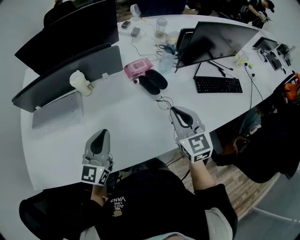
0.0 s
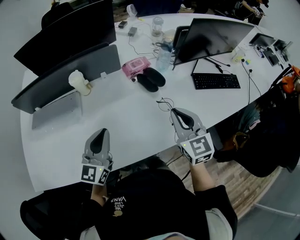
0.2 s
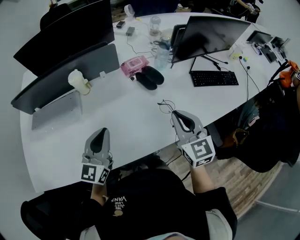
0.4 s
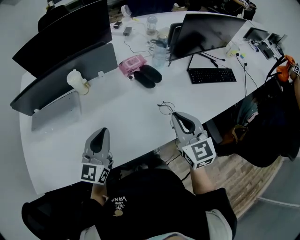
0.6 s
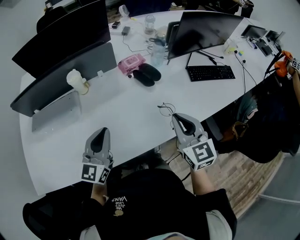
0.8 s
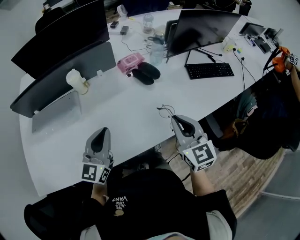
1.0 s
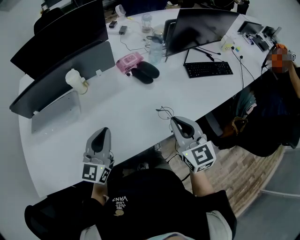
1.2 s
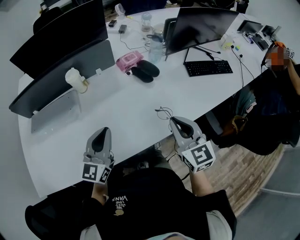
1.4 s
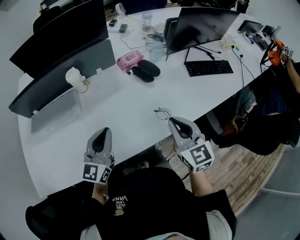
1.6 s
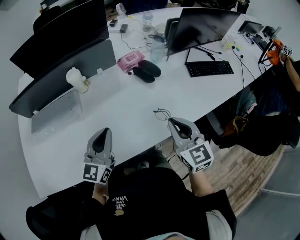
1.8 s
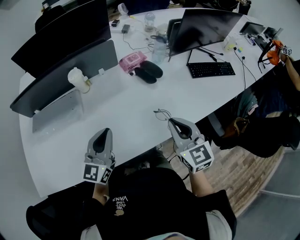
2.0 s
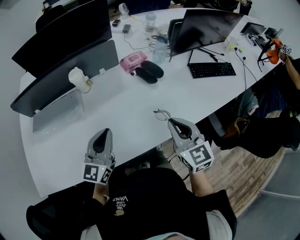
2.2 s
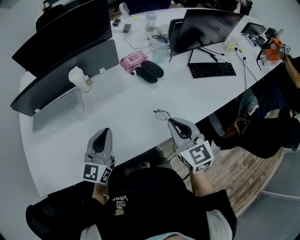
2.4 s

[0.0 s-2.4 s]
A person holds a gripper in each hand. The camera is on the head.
0.0 to 1.2 s: The right gripper shifts some 10 cm backward.
1.2 to 2.4 s: The grippers make only small movements.

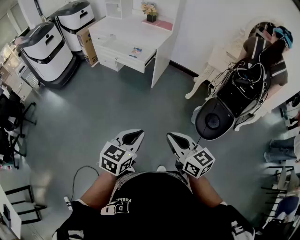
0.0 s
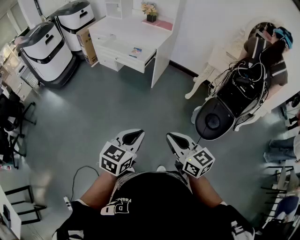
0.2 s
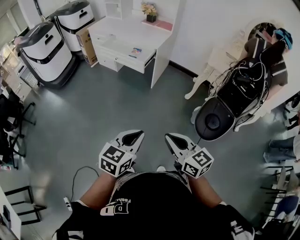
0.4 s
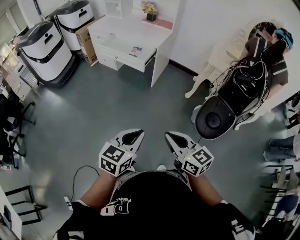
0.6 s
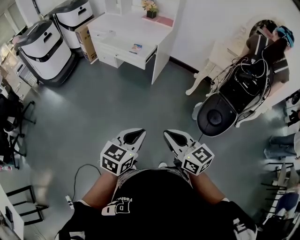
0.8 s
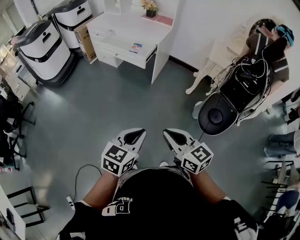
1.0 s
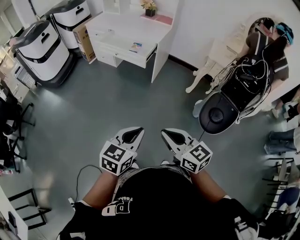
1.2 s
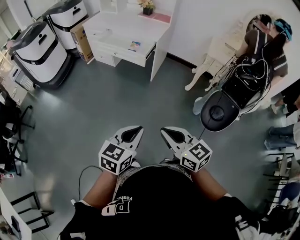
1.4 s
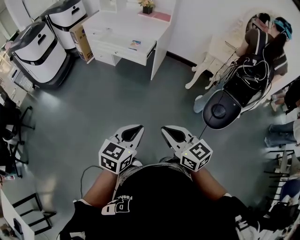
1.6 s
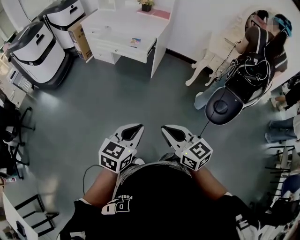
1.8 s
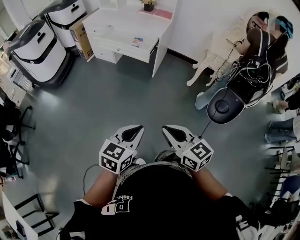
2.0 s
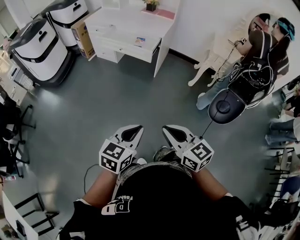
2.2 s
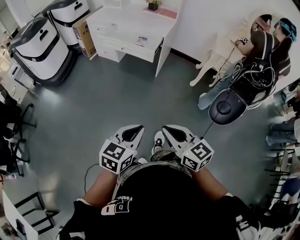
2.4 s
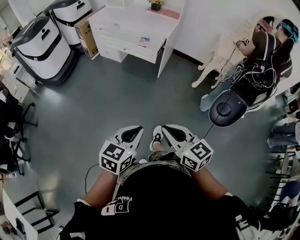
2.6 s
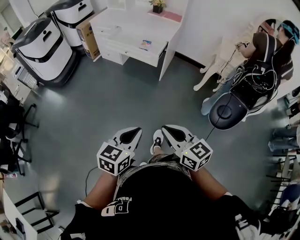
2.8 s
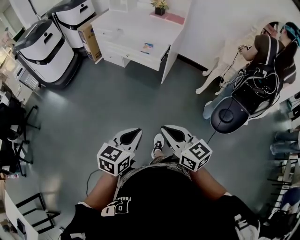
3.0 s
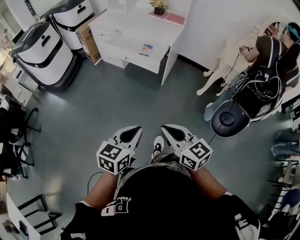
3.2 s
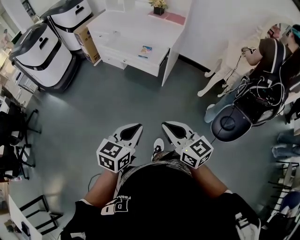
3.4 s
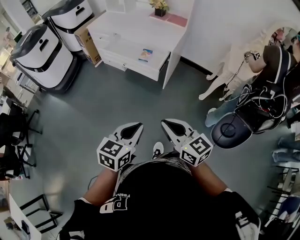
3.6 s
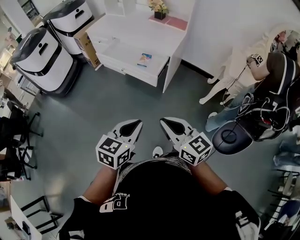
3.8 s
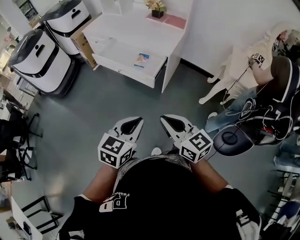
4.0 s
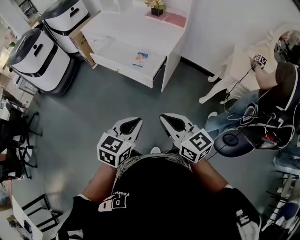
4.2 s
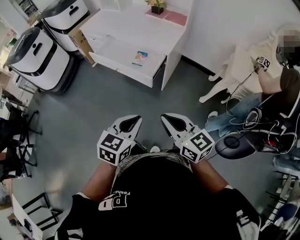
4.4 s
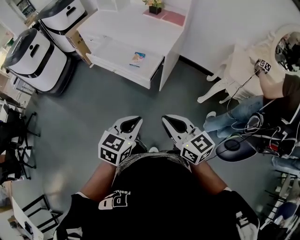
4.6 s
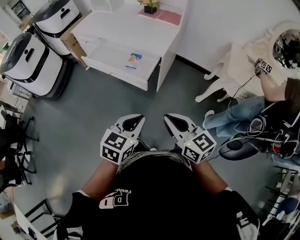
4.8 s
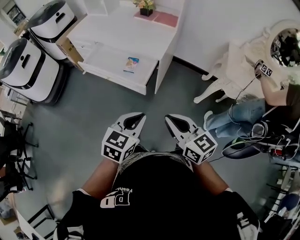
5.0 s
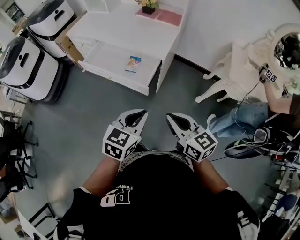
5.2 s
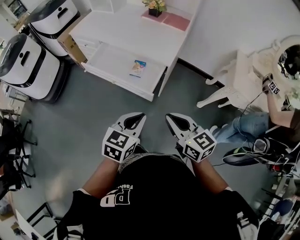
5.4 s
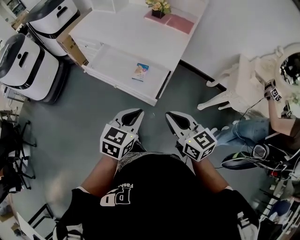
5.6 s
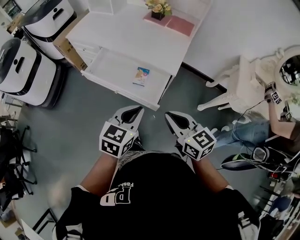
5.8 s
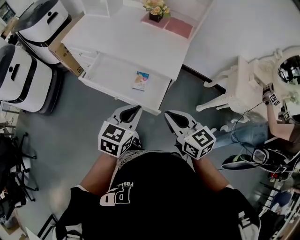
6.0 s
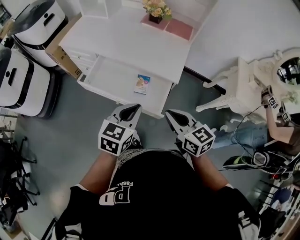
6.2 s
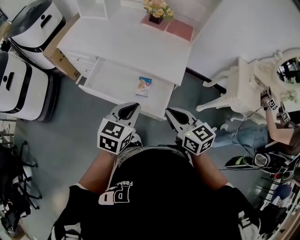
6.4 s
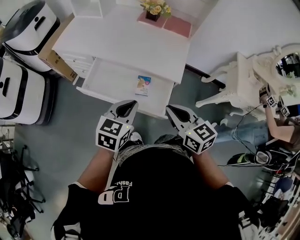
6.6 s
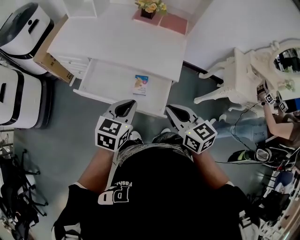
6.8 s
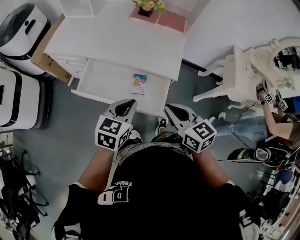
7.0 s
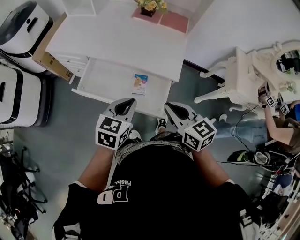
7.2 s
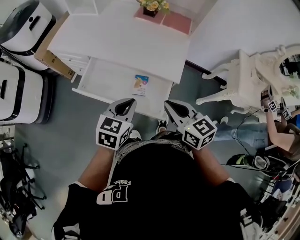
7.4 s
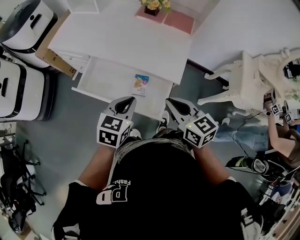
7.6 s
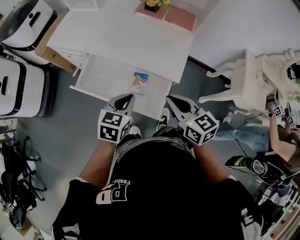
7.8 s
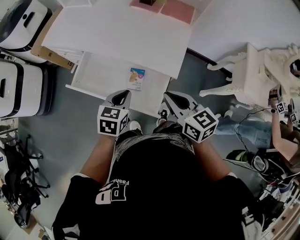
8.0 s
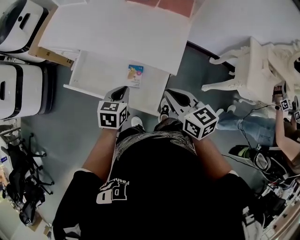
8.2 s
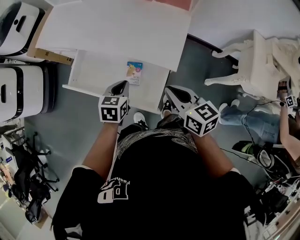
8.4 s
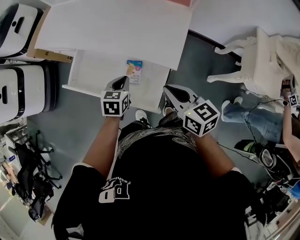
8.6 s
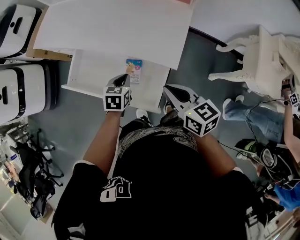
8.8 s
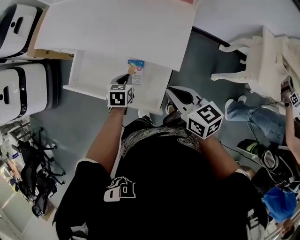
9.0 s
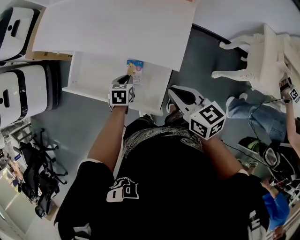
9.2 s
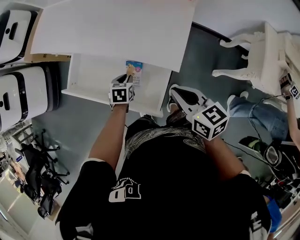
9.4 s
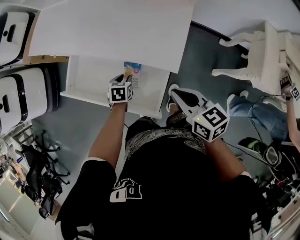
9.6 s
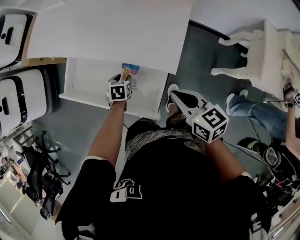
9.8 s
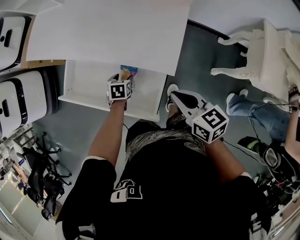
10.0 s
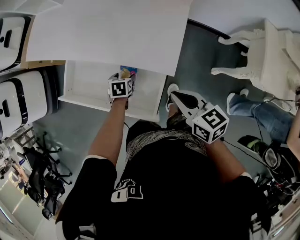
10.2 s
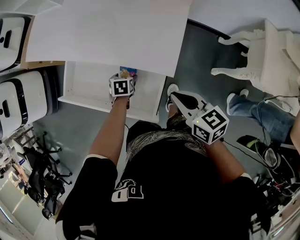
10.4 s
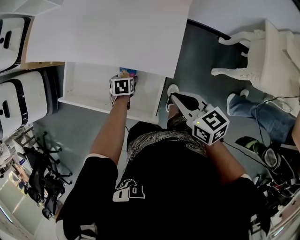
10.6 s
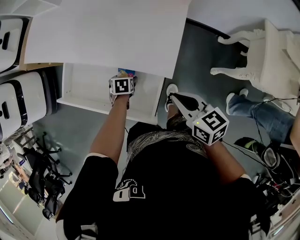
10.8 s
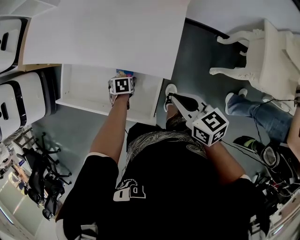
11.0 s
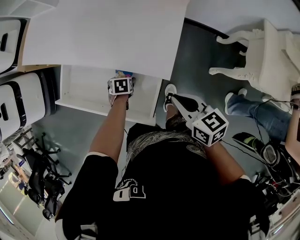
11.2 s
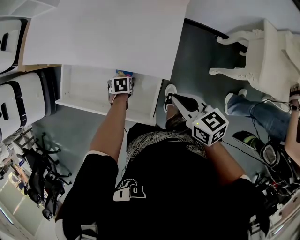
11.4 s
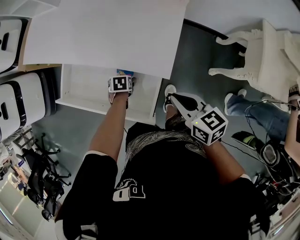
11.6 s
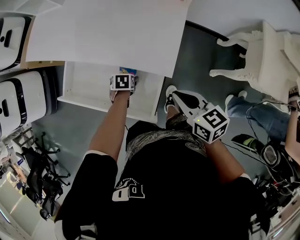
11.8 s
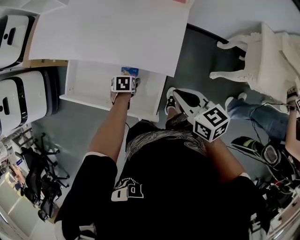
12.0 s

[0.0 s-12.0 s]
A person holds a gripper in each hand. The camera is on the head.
0.0 to 1.6 s: Both grippers move to the left, approximately 10 cm.
1.6 to 3.0 s: The right gripper is displaced forward and to the left by approximately 10 cm, while the left gripper goes some 10 cm to the left and forward.
3.0 to 4.4 s: The grippers both shift forward and to the right by some 30 cm.
4.4 to 6.0 s: Both grippers move forward, some 30 cm.
6.0 to 7.6 s: The grippers both shift forward by about 15 cm.
7.6 to 9.0 s: The left gripper is displaced downward and forward by approximately 25 cm, and changes its angle by roughly 30 degrees. The right gripper shifts roughly 10 cm downward and to the right.
9.0 to 10.4 s: The right gripper shifts by some 5 cm. The left gripper moves downward, about 10 cm, and opens its fingers.
10.4 to 12.0 s: The grippers stay close to where they were, moving slightly.

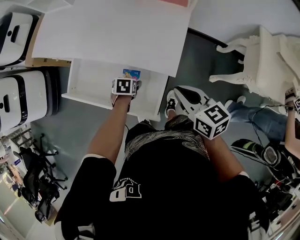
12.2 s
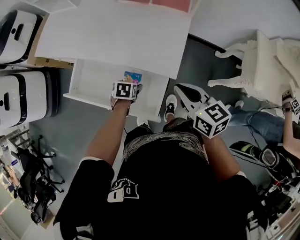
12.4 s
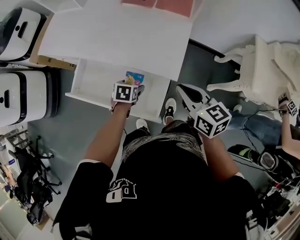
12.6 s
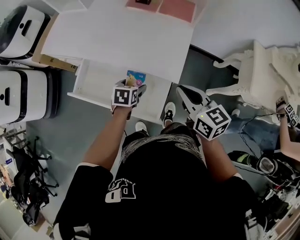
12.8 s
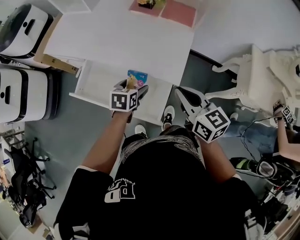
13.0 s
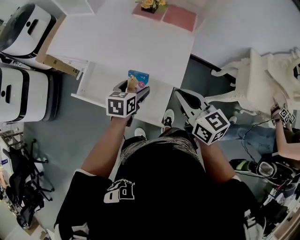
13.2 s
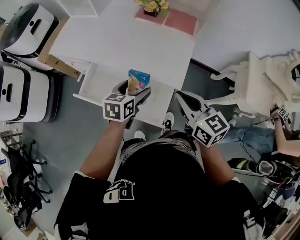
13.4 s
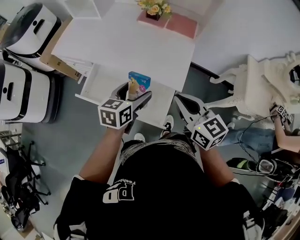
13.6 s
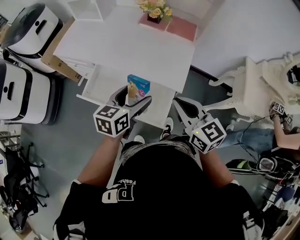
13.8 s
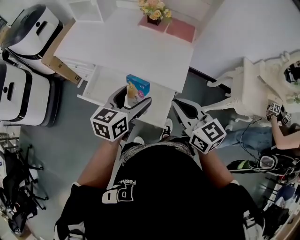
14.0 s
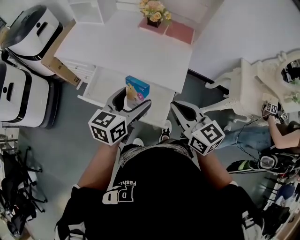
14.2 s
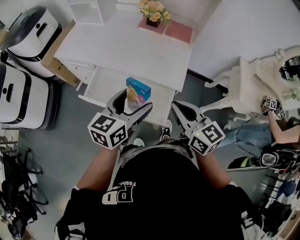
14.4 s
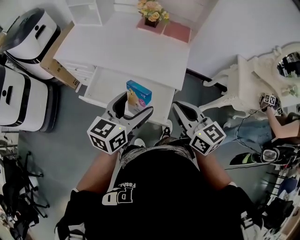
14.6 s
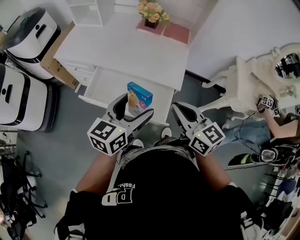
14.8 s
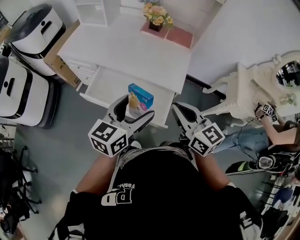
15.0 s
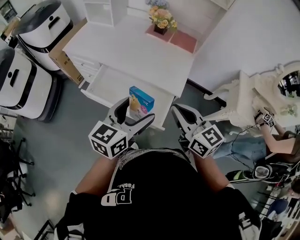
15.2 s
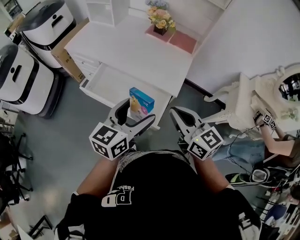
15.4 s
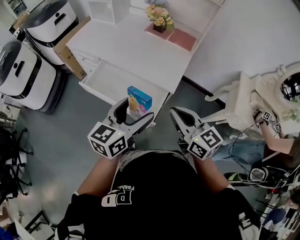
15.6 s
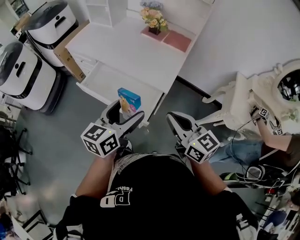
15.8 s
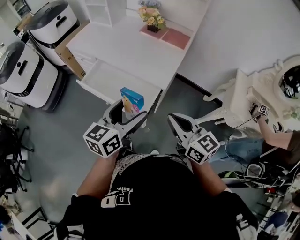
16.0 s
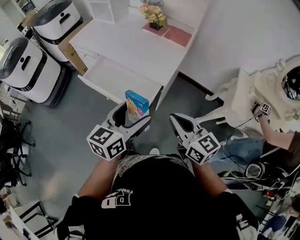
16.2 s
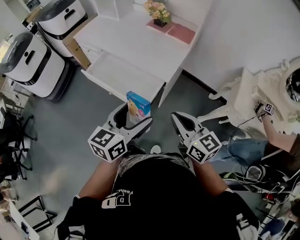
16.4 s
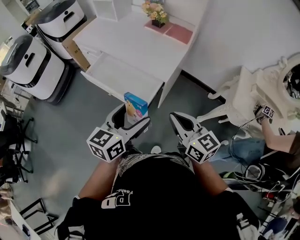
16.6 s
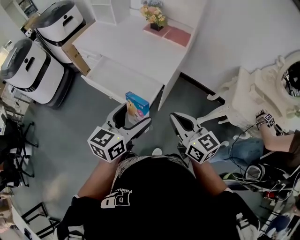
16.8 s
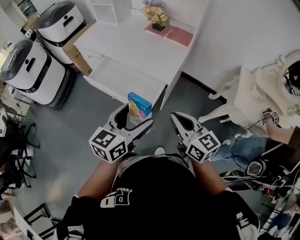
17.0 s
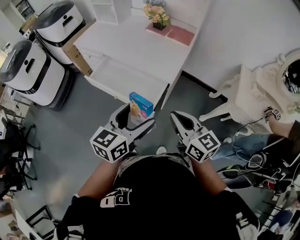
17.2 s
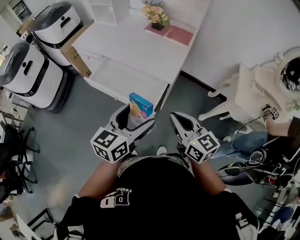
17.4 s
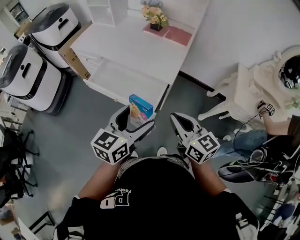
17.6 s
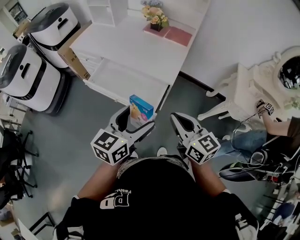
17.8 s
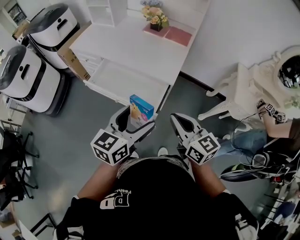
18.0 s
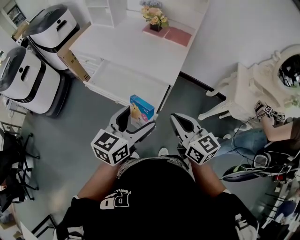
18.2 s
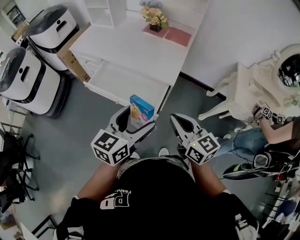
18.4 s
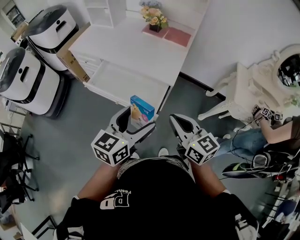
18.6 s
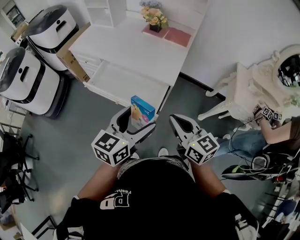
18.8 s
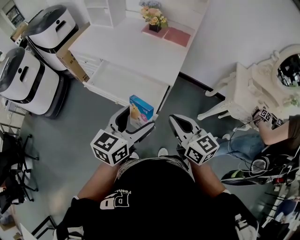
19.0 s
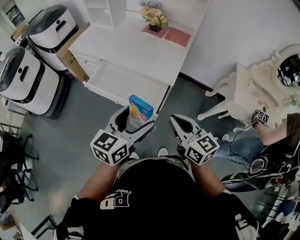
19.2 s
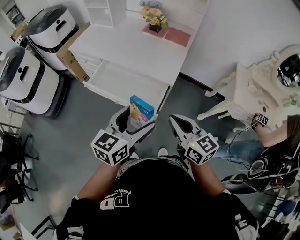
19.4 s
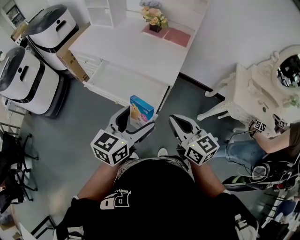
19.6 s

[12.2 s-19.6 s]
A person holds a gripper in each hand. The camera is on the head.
12.2 to 13.6 s: The right gripper goes some 15 cm upward and to the left, while the left gripper shifts about 30 cm upward, and angles its fingers upward, by some 50 degrees.
13.6 to 15.2 s: The left gripper heads backward and upward, covering some 20 cm, while the right gripper moves backward, about 10 cm.
15.2 to 16.6 s: The right gripper moves to the right and backward, about 20 cm, while the left gripper is displaced backward and to the right by roughly 20 cm.
16.6 to 18.2 s: Both grippers move to the left, about 5 cm.
18.2 to 19.6 s: The two grippers keep their place.

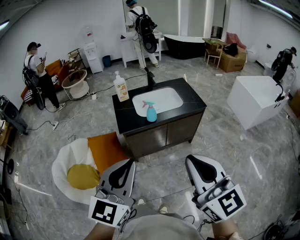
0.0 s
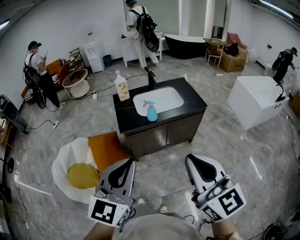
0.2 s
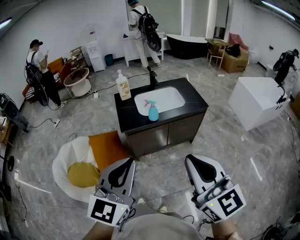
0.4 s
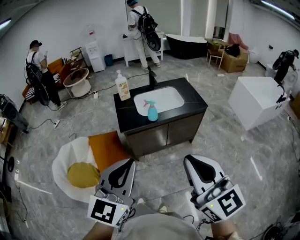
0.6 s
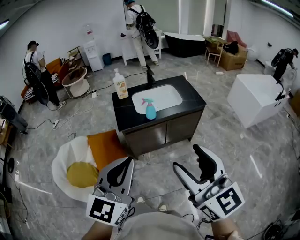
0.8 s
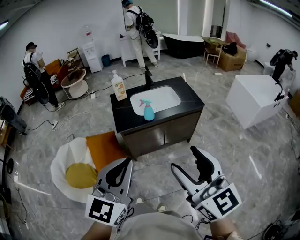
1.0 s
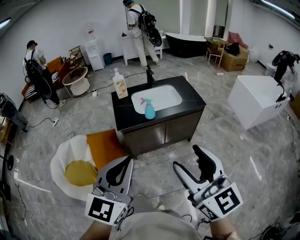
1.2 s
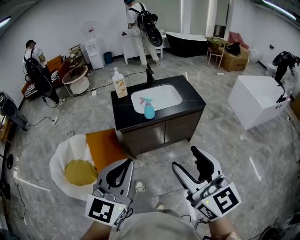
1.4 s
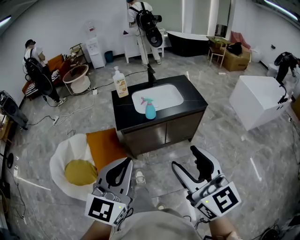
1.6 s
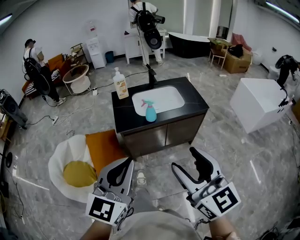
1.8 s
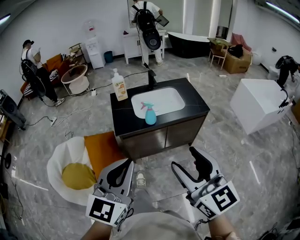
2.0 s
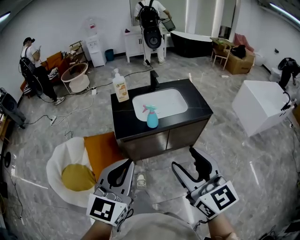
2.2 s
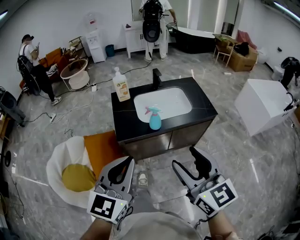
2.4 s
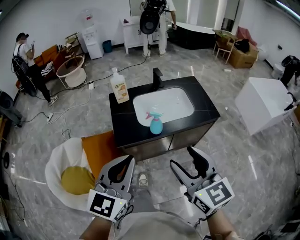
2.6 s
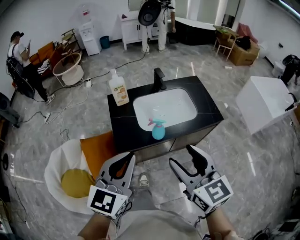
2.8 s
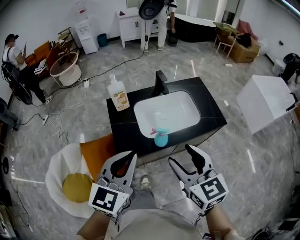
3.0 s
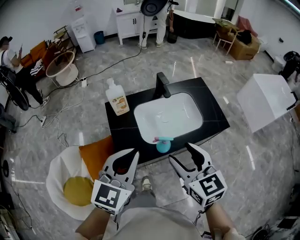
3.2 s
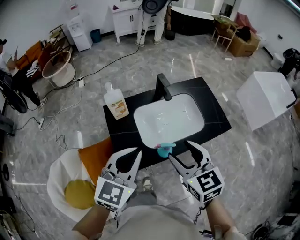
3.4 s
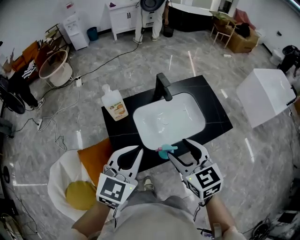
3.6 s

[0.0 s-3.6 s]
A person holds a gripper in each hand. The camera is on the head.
0.0 to 1.8 s: The left gripper ends up approximately 5 cm from where it was. The right gripper changes place by about 5 cm, and opens.
1.8 to 3.6 s: Both grippers are carried forward, some 50 cm. The left gripper rotates some 20 degrees; the right gripper rotates approximately 30 degrees.
